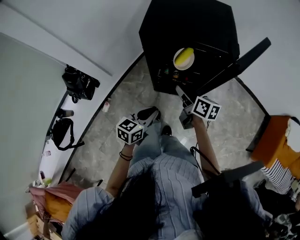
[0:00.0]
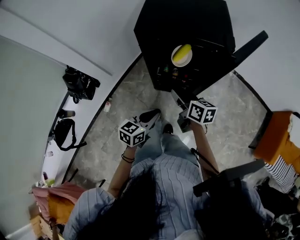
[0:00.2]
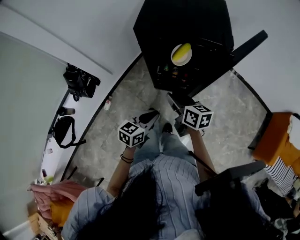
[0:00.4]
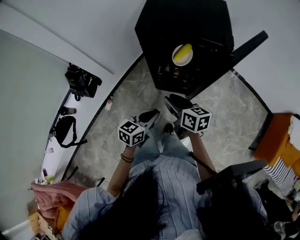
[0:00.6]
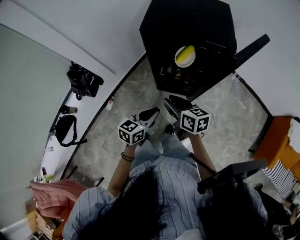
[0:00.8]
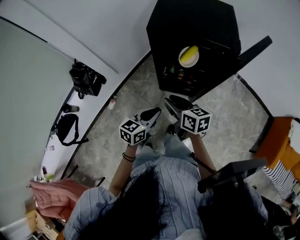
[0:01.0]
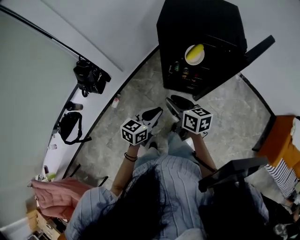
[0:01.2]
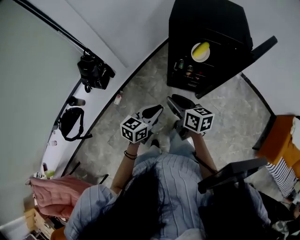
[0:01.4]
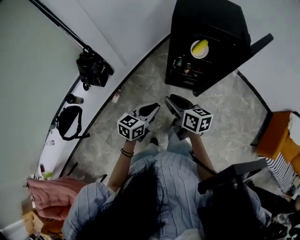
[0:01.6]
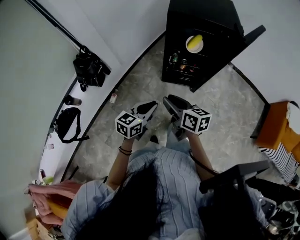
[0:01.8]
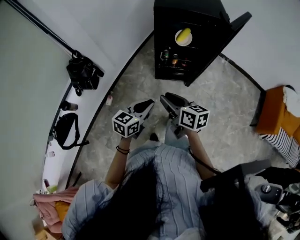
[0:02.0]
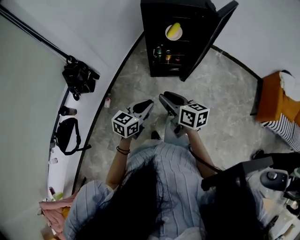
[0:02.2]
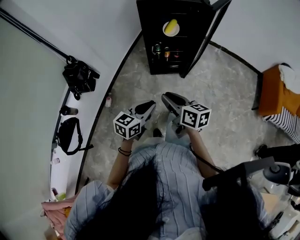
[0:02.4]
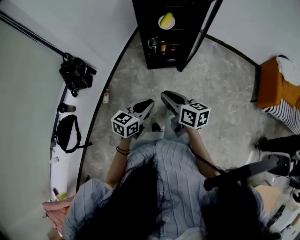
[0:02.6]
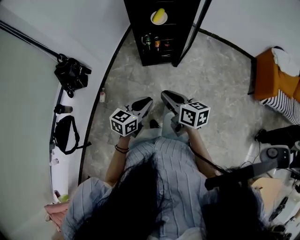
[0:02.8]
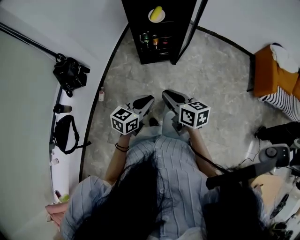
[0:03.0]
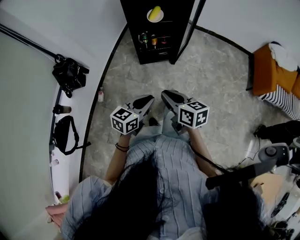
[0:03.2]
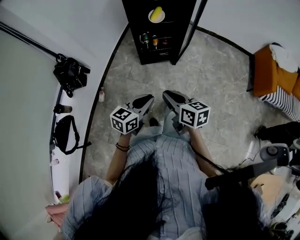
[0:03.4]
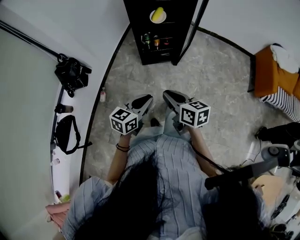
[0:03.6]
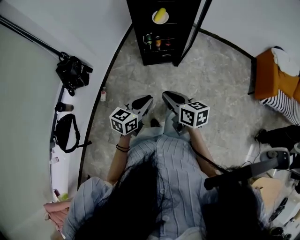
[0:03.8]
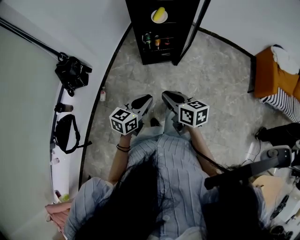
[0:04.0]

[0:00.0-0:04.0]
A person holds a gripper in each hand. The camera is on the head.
0:00.0 to 0:01.4: The right gripper heads backward and to the left, covering approximately 20 cm; the left gripper is displaced backward and to the left by roughly 10 cm.
0:01.4 to 0:02.6: Both grippers move backward, about 20 cm.
0:02.6 to 0:04.0: The grippers move only a little.

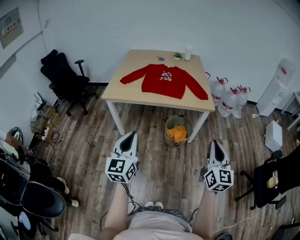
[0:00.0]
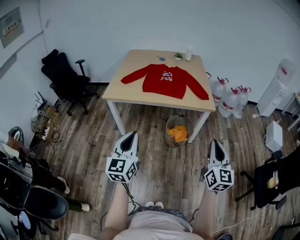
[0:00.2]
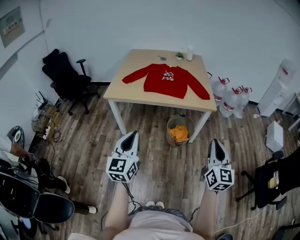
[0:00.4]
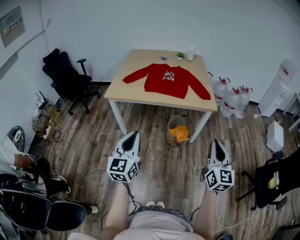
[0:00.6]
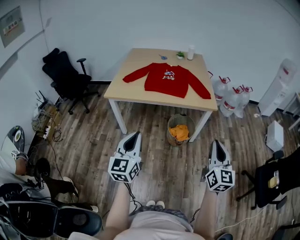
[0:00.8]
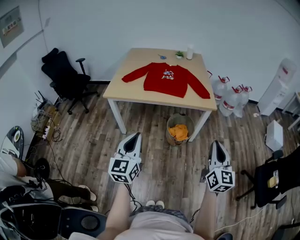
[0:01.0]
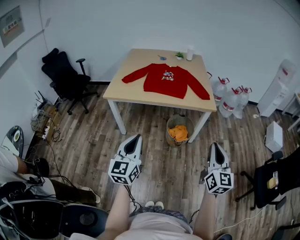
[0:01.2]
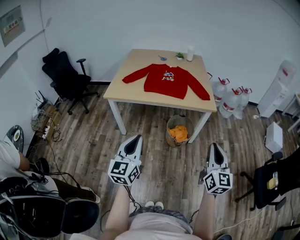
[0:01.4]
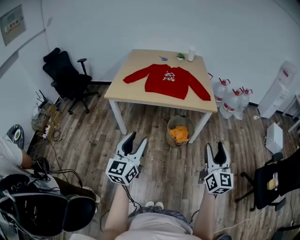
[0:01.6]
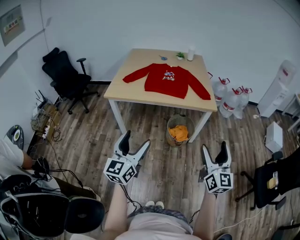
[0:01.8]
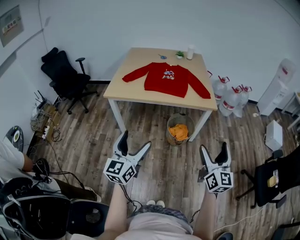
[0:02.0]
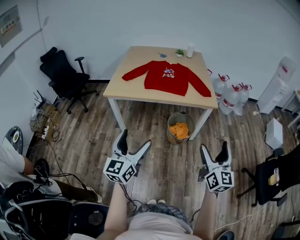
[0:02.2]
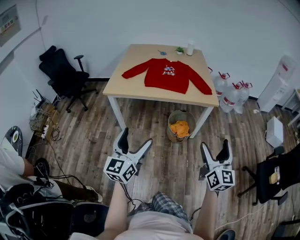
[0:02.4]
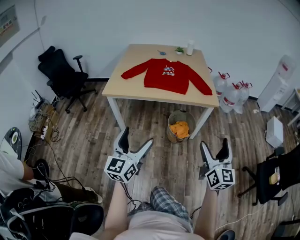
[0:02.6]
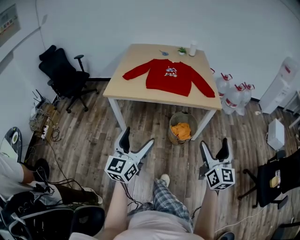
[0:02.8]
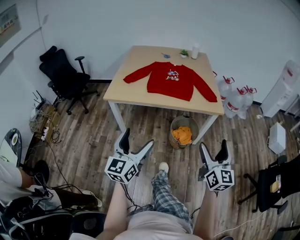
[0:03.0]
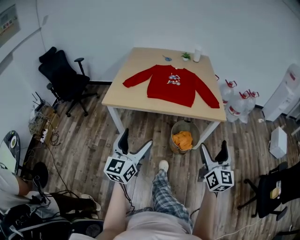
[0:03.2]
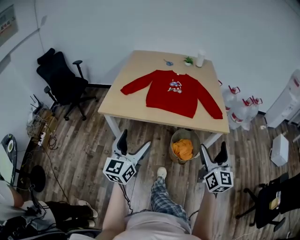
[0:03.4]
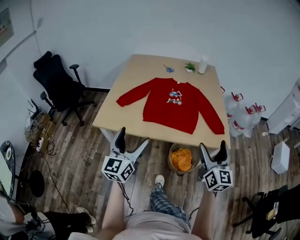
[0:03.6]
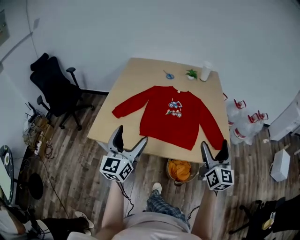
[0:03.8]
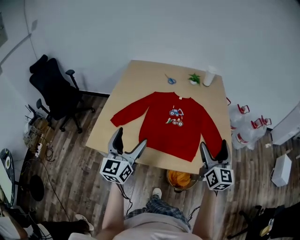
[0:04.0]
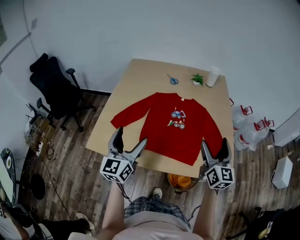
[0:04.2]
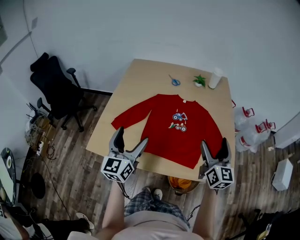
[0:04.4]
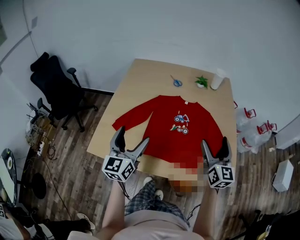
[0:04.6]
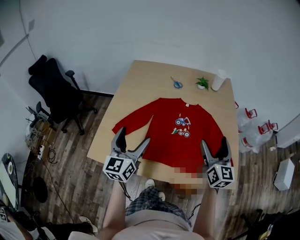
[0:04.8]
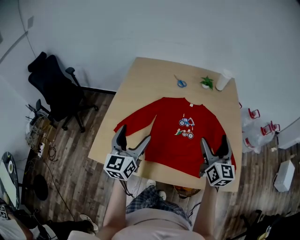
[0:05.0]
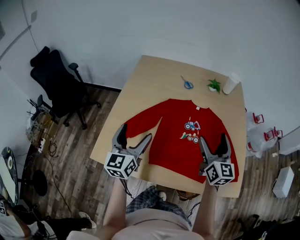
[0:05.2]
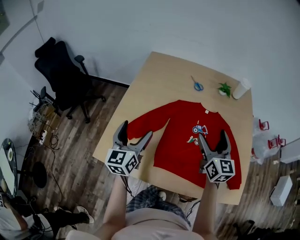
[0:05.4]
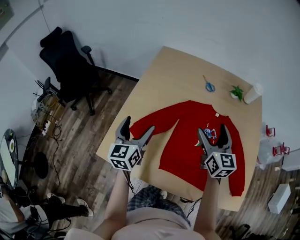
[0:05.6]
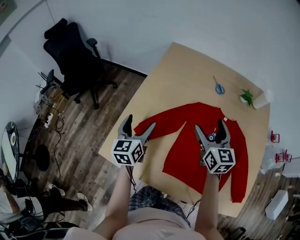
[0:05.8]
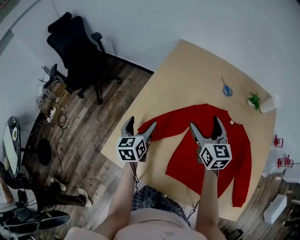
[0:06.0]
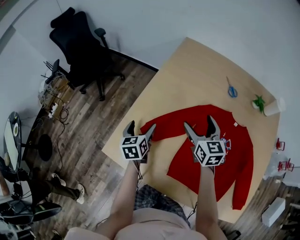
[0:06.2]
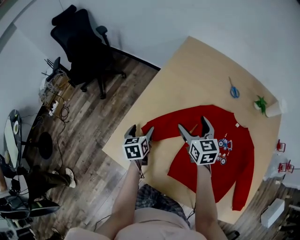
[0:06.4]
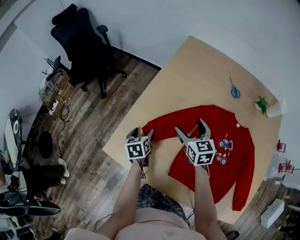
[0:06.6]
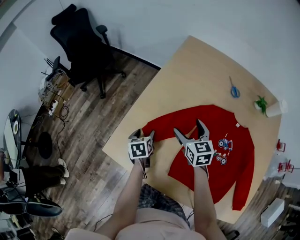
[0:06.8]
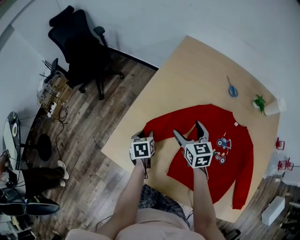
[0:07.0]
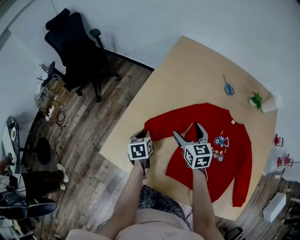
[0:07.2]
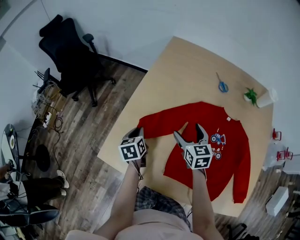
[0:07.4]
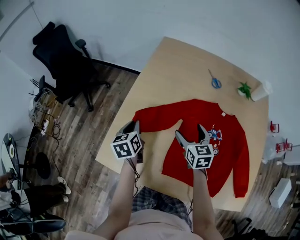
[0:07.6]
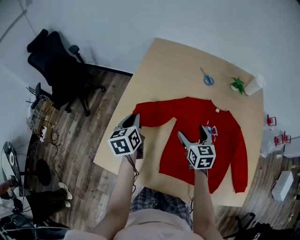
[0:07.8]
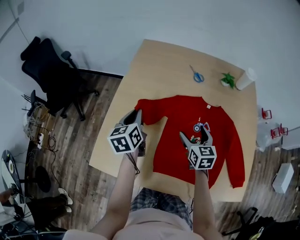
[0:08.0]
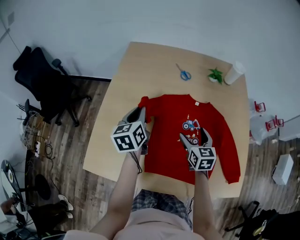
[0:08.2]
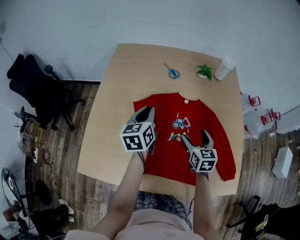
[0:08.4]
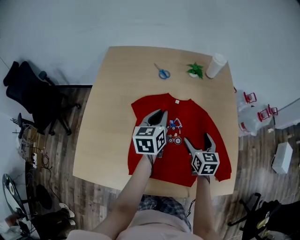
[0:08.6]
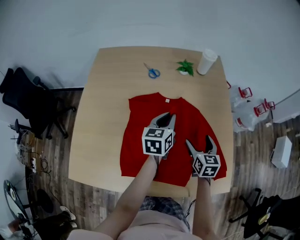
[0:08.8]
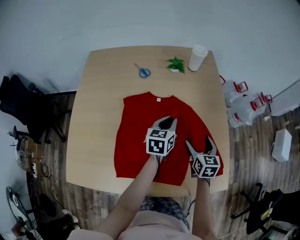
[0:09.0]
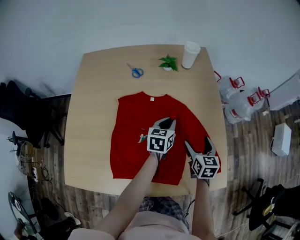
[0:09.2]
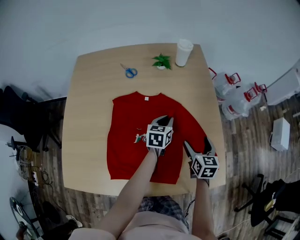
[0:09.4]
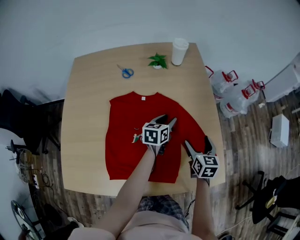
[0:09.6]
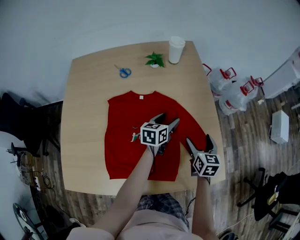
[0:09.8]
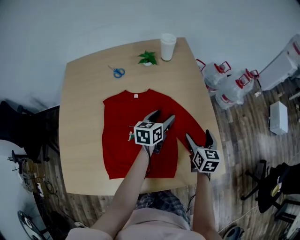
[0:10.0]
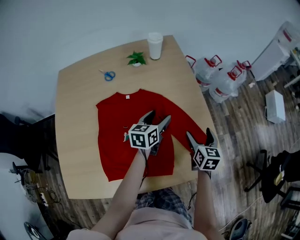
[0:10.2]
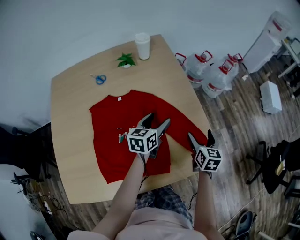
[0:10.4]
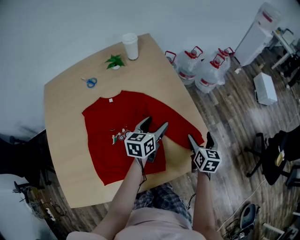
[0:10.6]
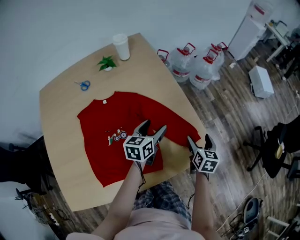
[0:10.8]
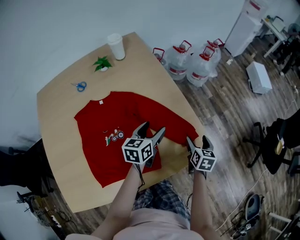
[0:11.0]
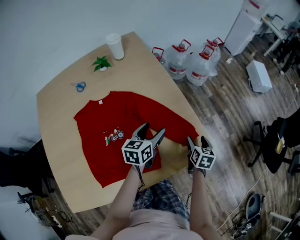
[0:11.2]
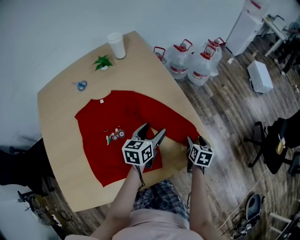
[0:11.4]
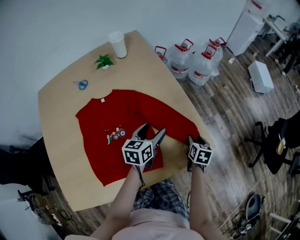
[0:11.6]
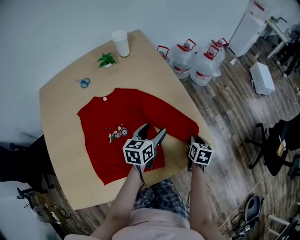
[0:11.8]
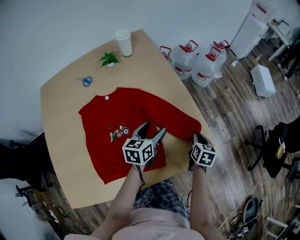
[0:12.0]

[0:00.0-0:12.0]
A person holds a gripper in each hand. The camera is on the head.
0:00.0 to 0:01.6: The right gripper opens. Meanwhile the left gripper opens up.
0:01.6 to 0:03.0: The right gripper is displaced forward and to the left by some 10 cm, and opens up. Meanwhile the left gripper shifts about 10 cm forward, and opens its fingers.
0:03.0 to 0:04.4: The pair of grippers is taken forward, some 50 cm.
0:04.4 to 0:06.0: The left gripper goes approximately 35 cm forward, to the left and downward, and rotates roughly 40 degrees. Meanwhile the right gripper moves forward and to the left, about 40 cm, and swivels roughly 30 degrees.
0:06.0 to 0:07.6: The left gripper moves roughly 15 cm downward and comes back, and closes; the right gripper shifts some 10 cm downward.
0:07.6 to 0:09.0: The left gripper moves roughly 10 cm upward and comes back, and rotates approximately 50 degrees, while the right gripper moves approximately 40 cm, and rotates some 30 degrees.
0:09.0 to 0:10.4: The grippers both shift to the right by about 15 cm. The right gripper rotates about 20 degrees. The left gripper rotates roughly 20 degrees, and opens.
0:10.4 to 0:12.0: The left gripper moves backward and to the right, roughly 10 cm. The right gripper moves to the right and downward, about 10 cm, and closes its fingers.

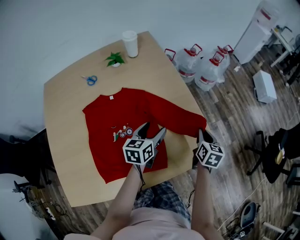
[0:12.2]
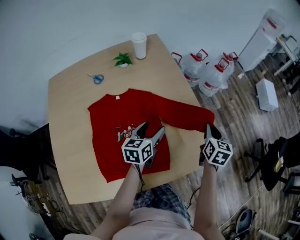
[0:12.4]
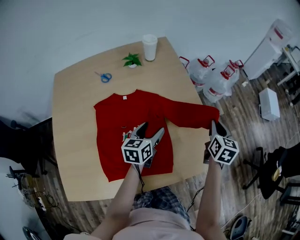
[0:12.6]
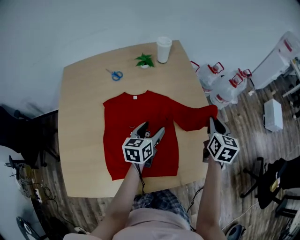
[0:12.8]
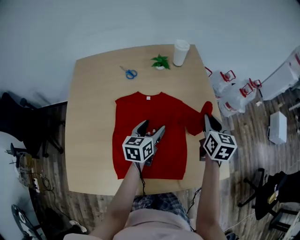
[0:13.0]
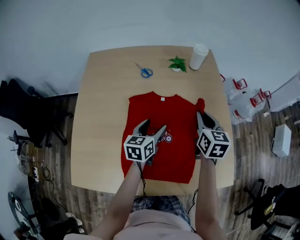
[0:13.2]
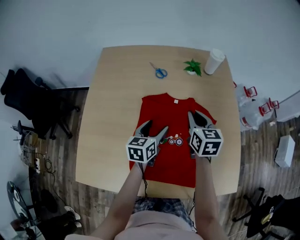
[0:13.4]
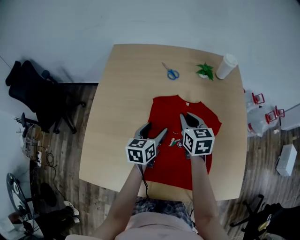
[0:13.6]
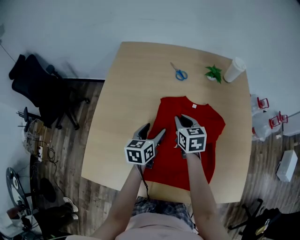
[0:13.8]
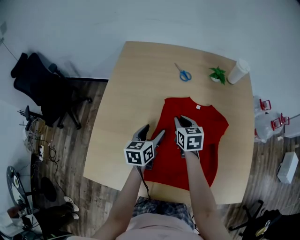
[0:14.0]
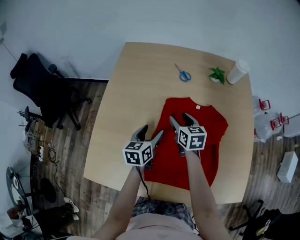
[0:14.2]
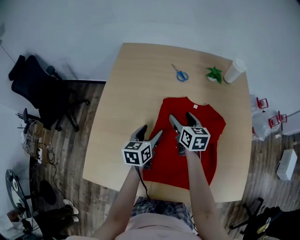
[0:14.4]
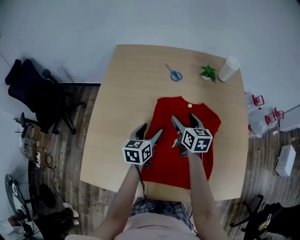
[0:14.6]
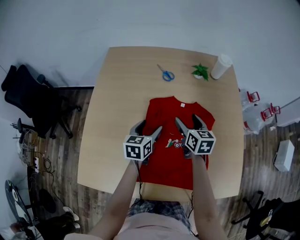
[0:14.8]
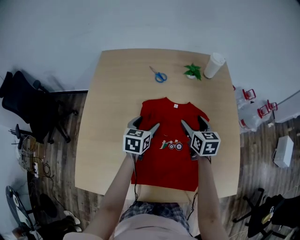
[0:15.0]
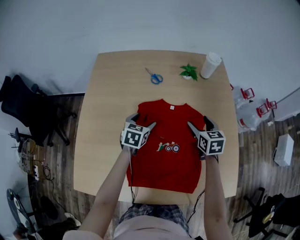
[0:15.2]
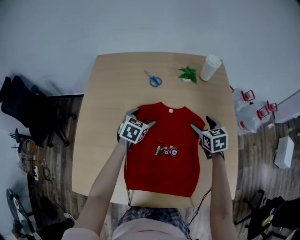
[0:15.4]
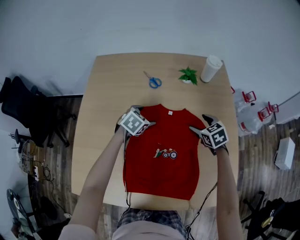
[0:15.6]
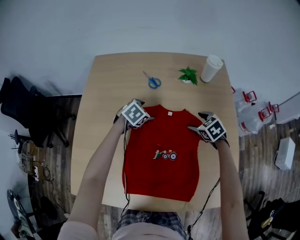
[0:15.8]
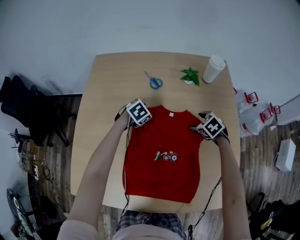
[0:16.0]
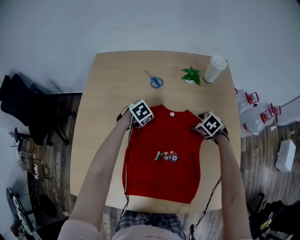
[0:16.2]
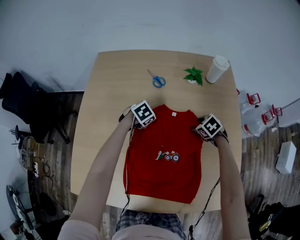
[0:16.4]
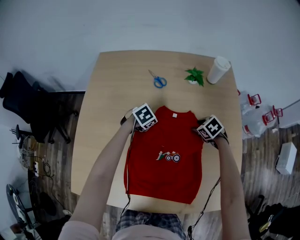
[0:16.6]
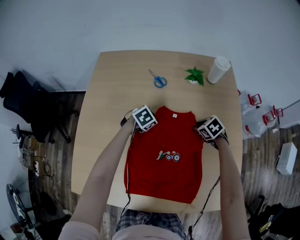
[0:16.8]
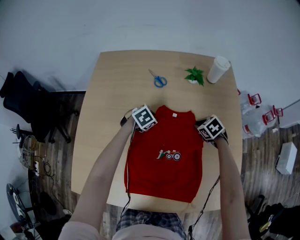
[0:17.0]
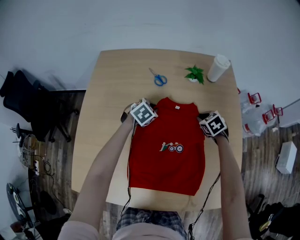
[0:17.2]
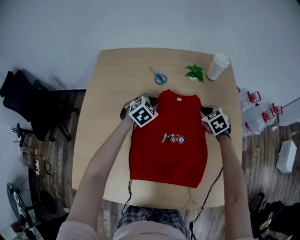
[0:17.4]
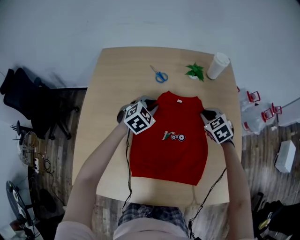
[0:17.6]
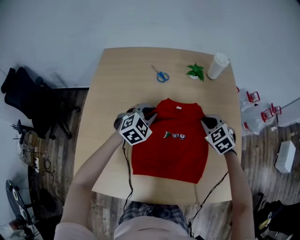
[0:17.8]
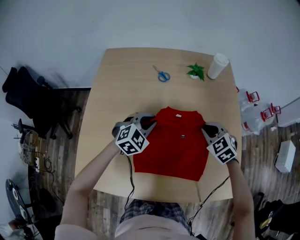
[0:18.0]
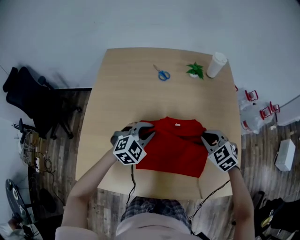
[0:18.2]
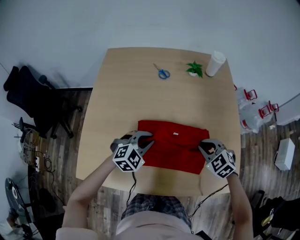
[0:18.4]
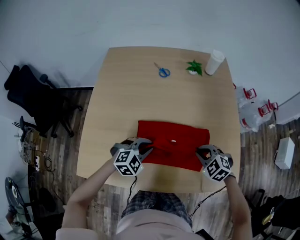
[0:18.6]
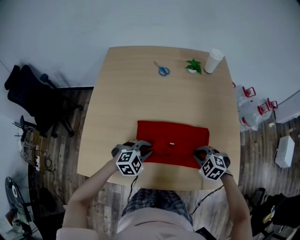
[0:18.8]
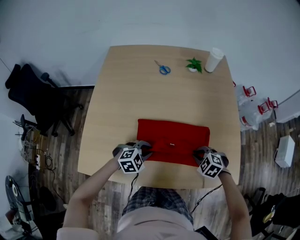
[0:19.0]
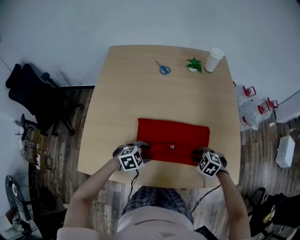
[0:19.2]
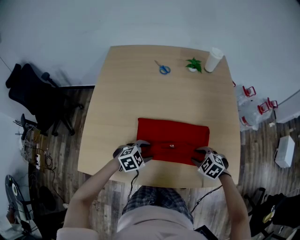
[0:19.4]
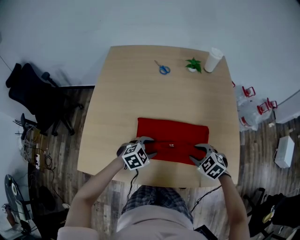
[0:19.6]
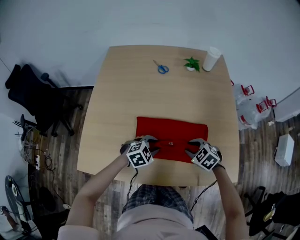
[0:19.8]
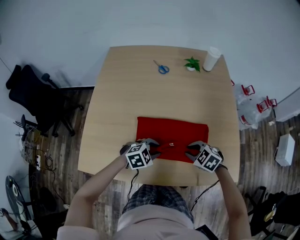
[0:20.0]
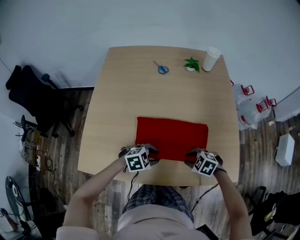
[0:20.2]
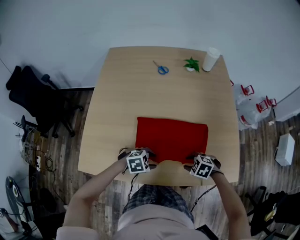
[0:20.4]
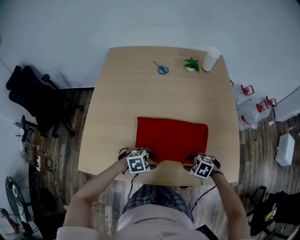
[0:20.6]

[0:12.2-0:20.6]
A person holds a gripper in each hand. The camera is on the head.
0:12.2 to 0:13.6: The left gripper moves about 30 cm, and changes its angle by about 30 degrees. The right gripper ends up roughly 50 cm from where it was, and swivels about 50 degrees.
0:13.6 to 0:15.0: The left gripper goes to the left and returns, about 5 cm each way; the right gripper goes approximately 10 cm to the right, and opens.
0:15.0 to 0:16.4: The left gripper is displaced downward and forward by some 15 cm, and tilts its fingers about 30 degrees downward; the right gripper heads downward, forward and to the right, covering approximately 15 cm, and tips its fingers downward by approximately 40 degrees.
0:16.4 to 0:17.8: The two grippers go some 15 cm upward. The left gripper rotates approximately 40 degrees, and closes its fingers. The right gripper swivels roughly 30 degrees, and closes.
0:17.8 to 0:19.2: The left gripper changes place by approximately 30 cm, swivels some 30 degrees, and opens its fingers; the right gripper changes place by roughly 30 cm, and rotates about 30 degrees.
0:19.2 to 0:20.6: The left gripper changes place by approximately 5 cm. The right gripper travels upward and back again, about 5 cm each way.
